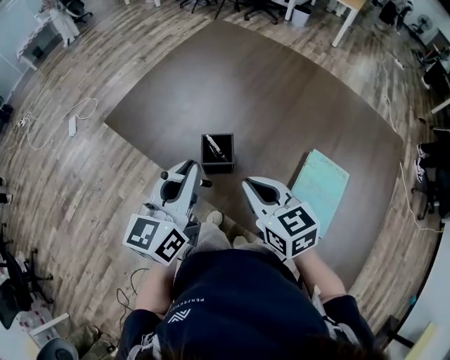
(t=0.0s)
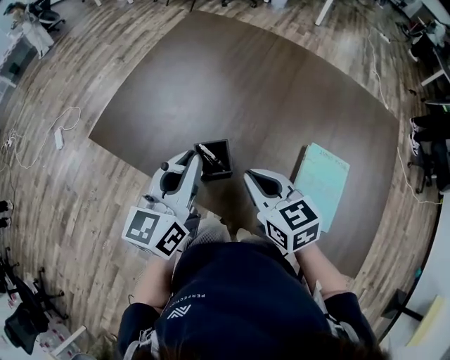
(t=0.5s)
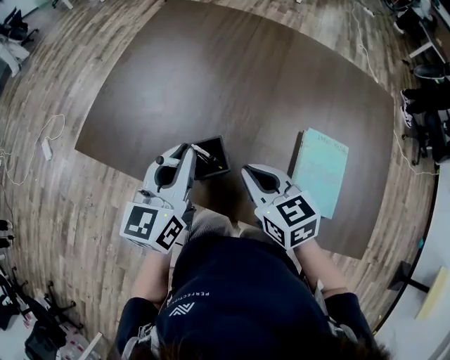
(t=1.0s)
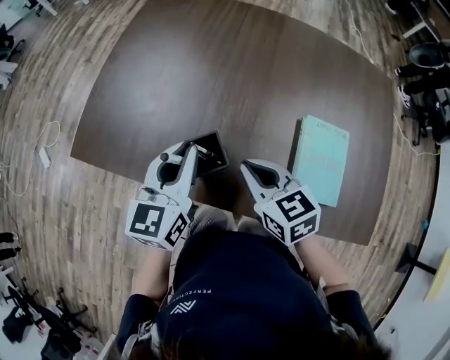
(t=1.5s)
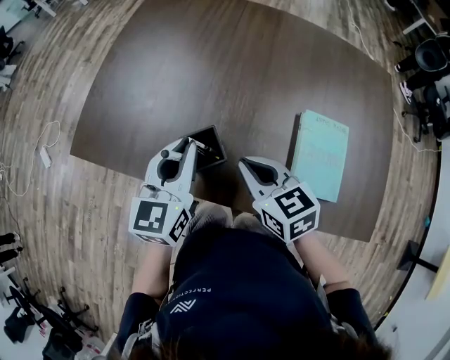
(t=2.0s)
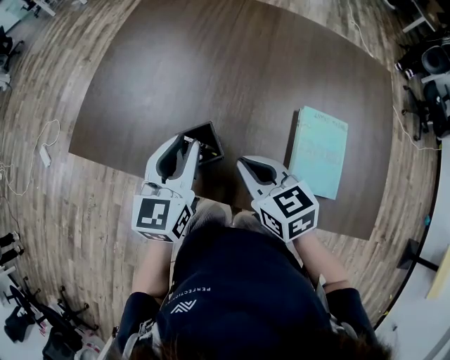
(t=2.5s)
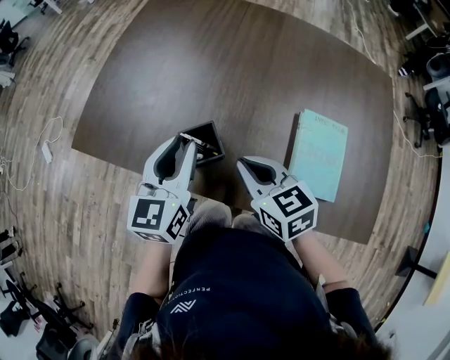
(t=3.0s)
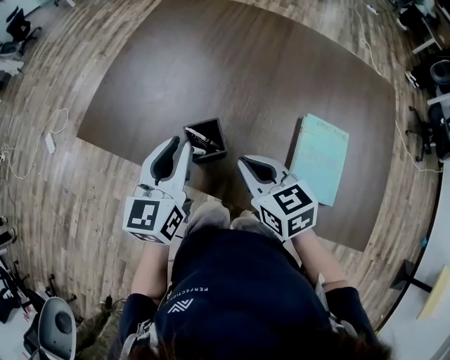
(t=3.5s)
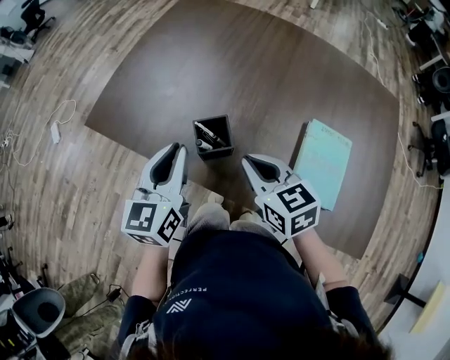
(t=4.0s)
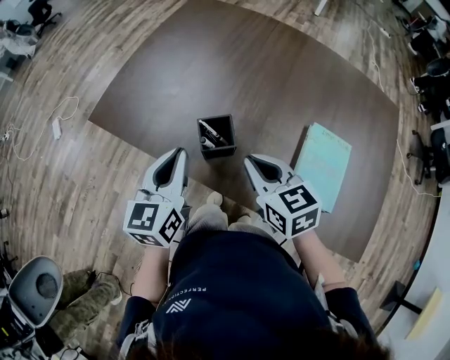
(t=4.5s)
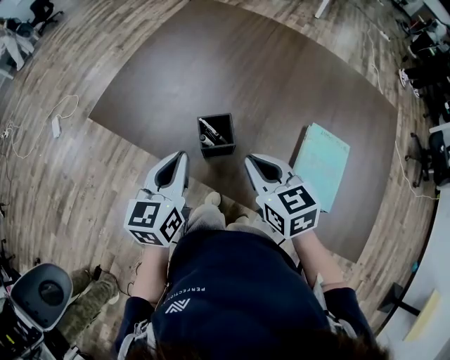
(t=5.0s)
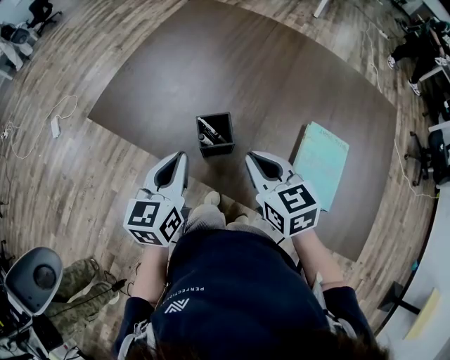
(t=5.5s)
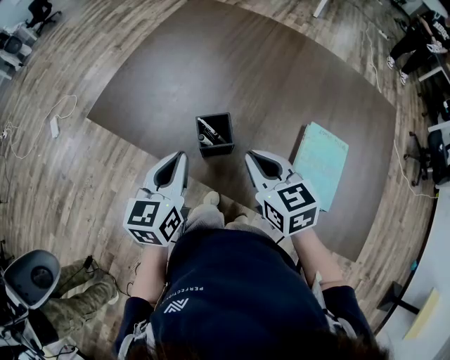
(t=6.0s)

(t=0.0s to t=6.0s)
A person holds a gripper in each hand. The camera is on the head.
t=0.0s - t=2.0s: The left gripper shifts about 10 cm forward and downward, and swivels approximately 20 degrees. Meanwhile the right gripper shifts by approximately 5 cm.
t=2.0s - t=4.0s: The left gripper is displaced to the left by approximately 5 cm.
t=4.0s - t=6.0s: The grippers make only small movements.

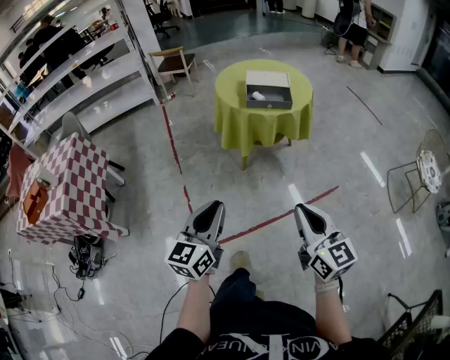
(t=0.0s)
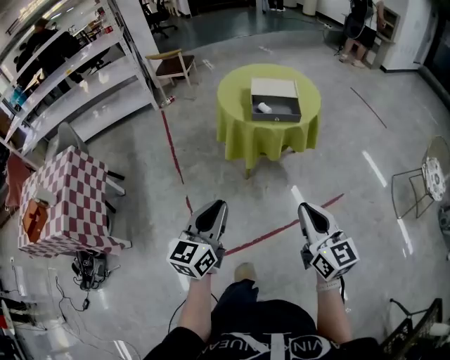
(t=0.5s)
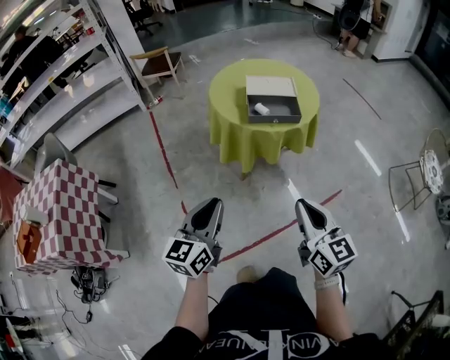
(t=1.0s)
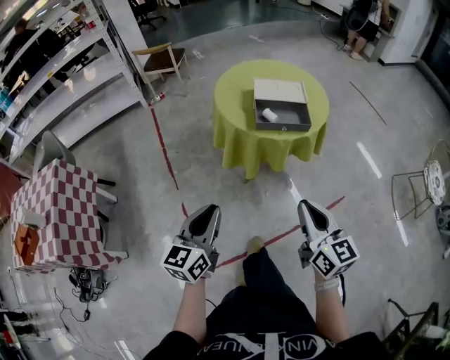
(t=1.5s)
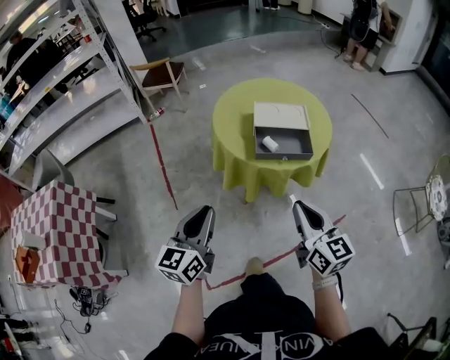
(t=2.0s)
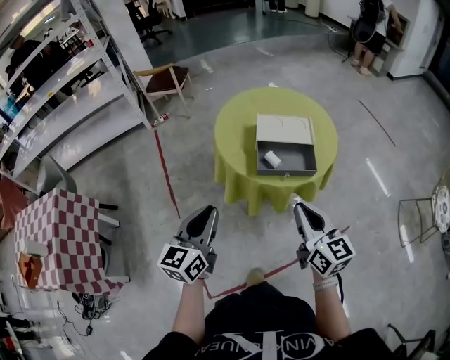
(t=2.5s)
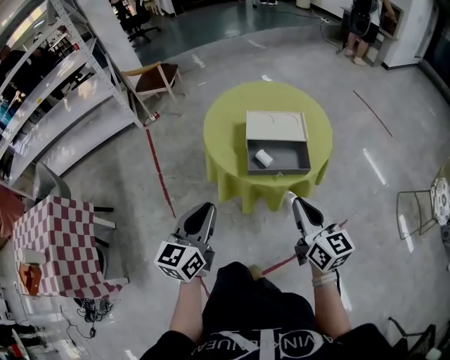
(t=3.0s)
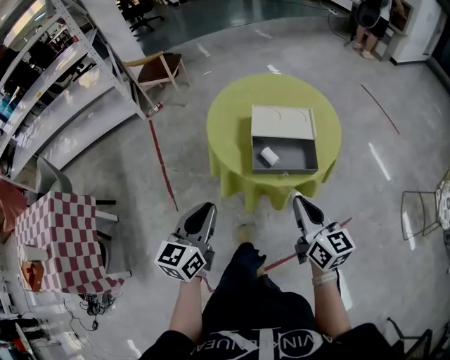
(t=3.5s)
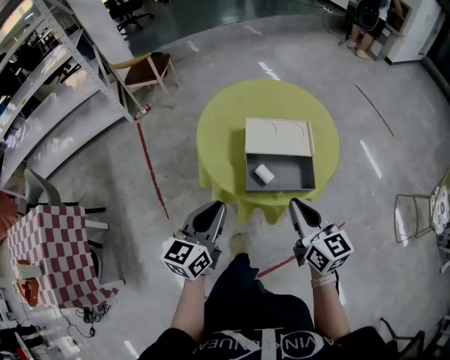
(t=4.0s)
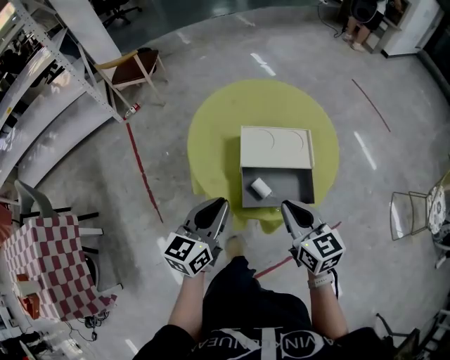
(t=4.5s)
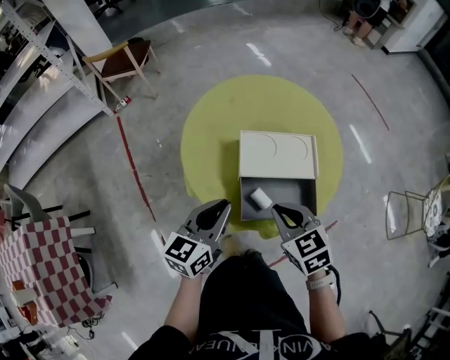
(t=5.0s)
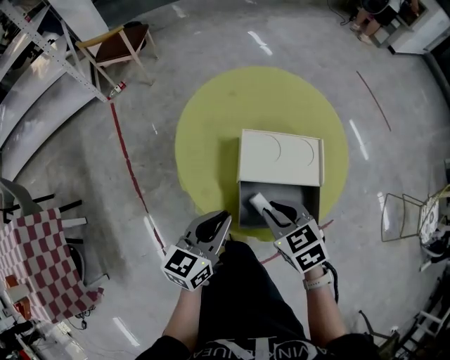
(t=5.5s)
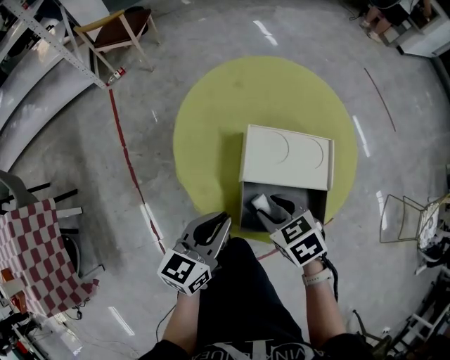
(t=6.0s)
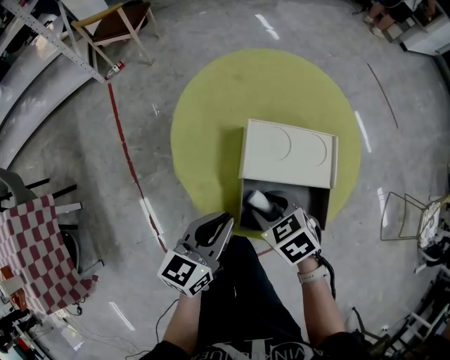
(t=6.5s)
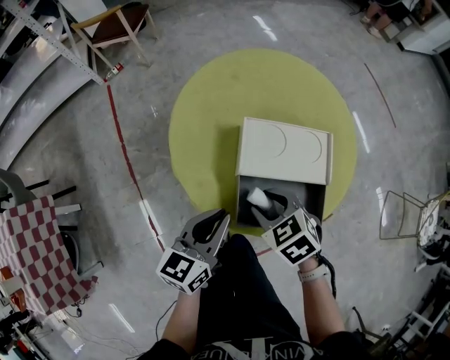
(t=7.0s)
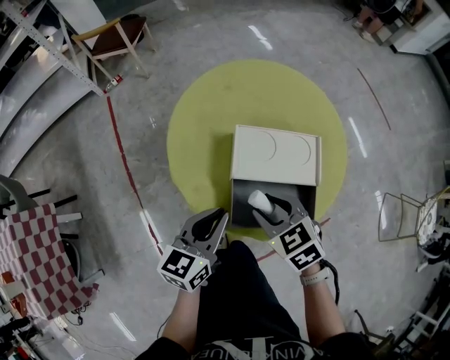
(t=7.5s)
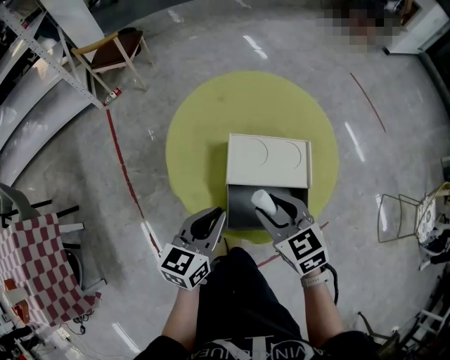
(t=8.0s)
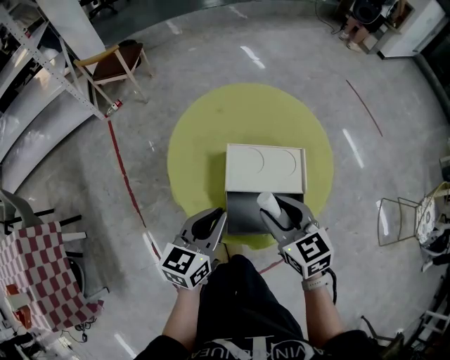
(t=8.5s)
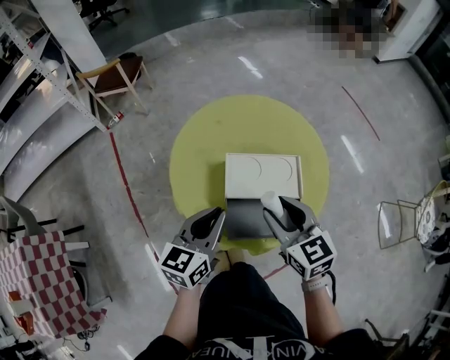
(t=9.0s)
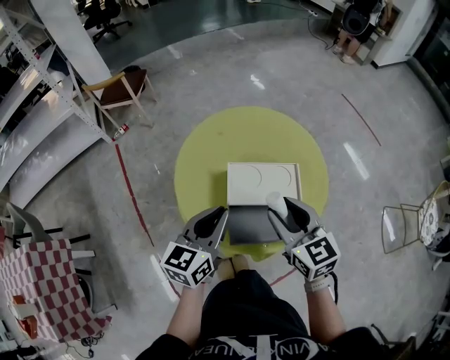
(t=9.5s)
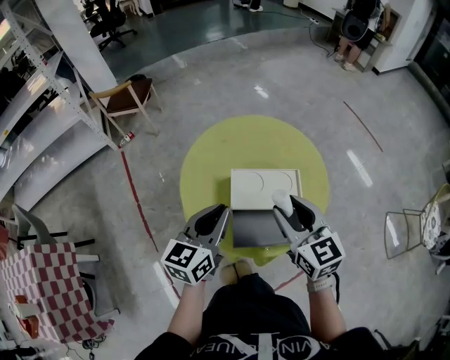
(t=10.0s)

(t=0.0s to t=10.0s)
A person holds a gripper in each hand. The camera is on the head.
t=0.0s - t=2.0s: Both grippers move forward, approximately 35 cm.
t=2.0s - t=4.0s: The left gripper shifts roughly 20 cm forward and to the right. The right gripper travels forward by about 20 cm.
t=4.0s - t=6.0s: The left gripper heads forward and downward, covering approximately 15 cm, while the right gripper shifts roughly 20 cm downward and forward, angles its fingers downward, by approximately 50 degrees, and opens its fingers.
t=6.0s - t=8.0s: The right gripper goes roughly 10 cm upward, and turns by approximately 20 degrees.
t=8.0s - t=10.0s: Both grippers move upward, about 10 cm. The right gripper swivels about 30 degrees.

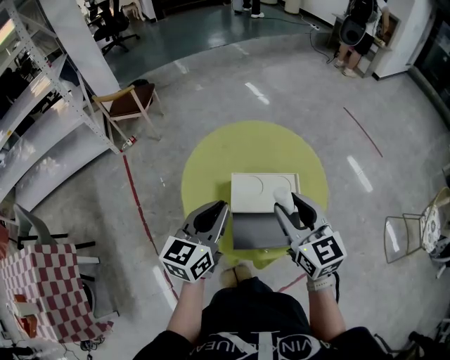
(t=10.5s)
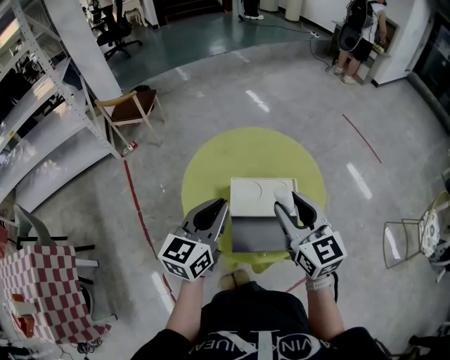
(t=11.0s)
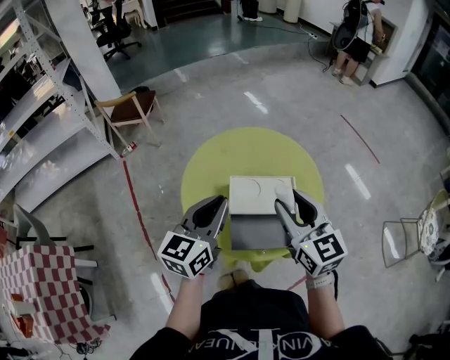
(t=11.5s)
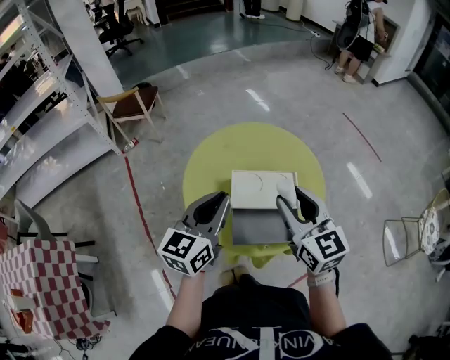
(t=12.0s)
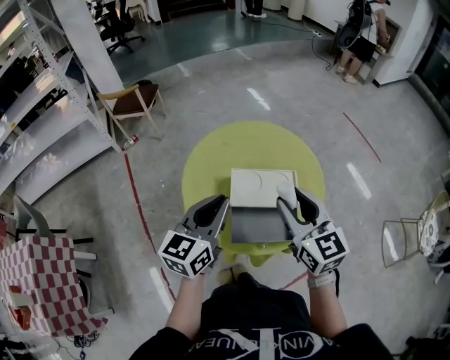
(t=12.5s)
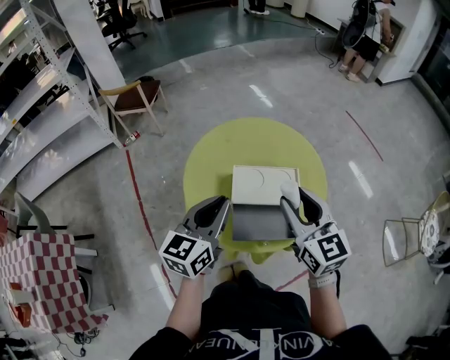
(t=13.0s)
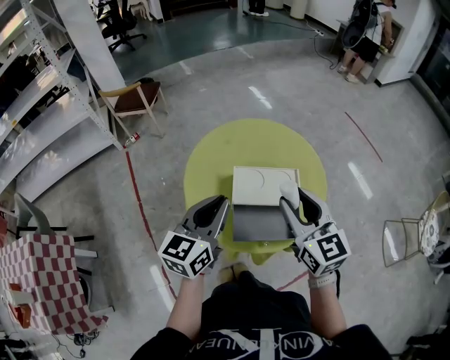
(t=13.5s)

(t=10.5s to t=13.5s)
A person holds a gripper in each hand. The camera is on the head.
t=10.5s - t=13.5s: The grippers make only small movements.

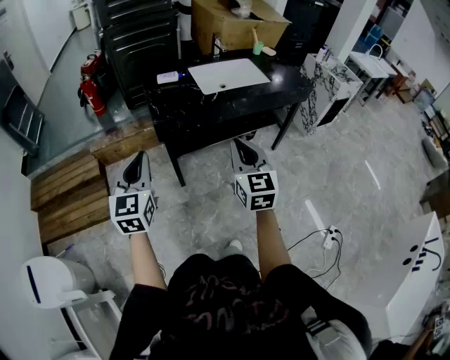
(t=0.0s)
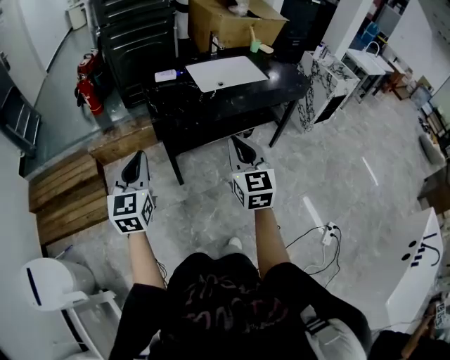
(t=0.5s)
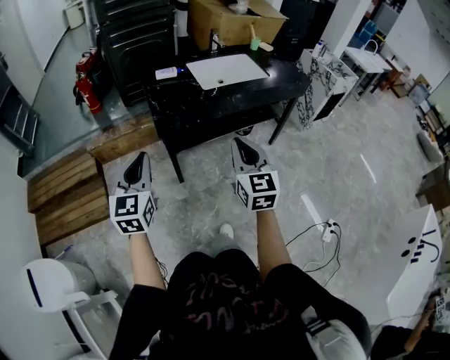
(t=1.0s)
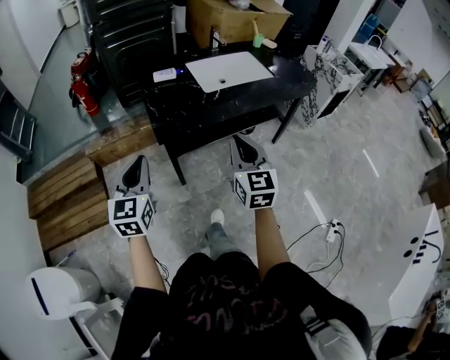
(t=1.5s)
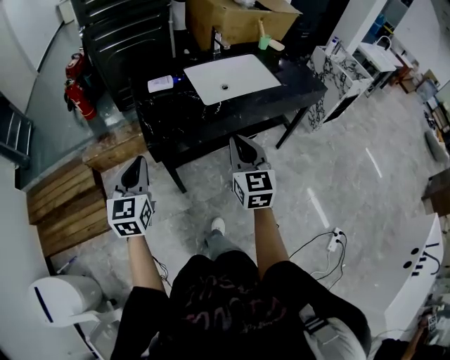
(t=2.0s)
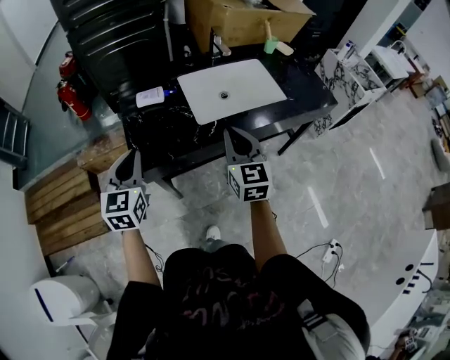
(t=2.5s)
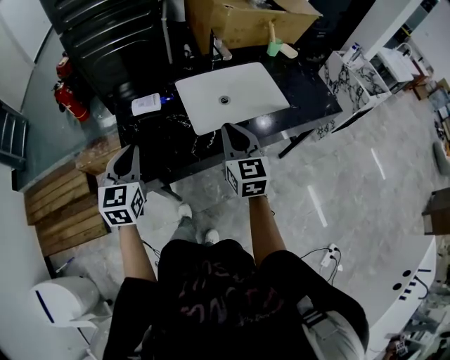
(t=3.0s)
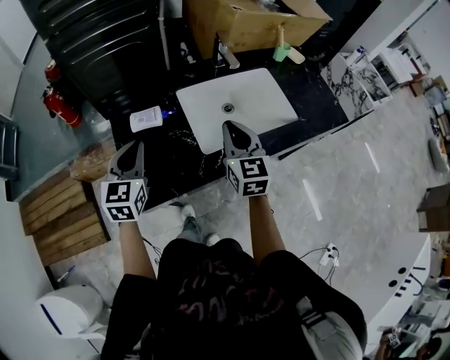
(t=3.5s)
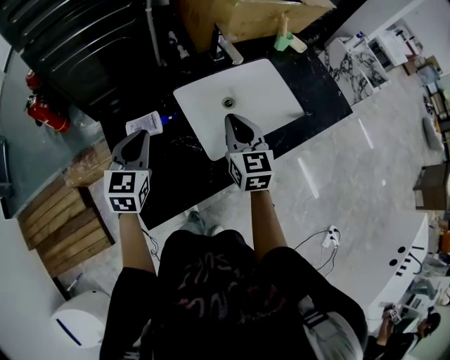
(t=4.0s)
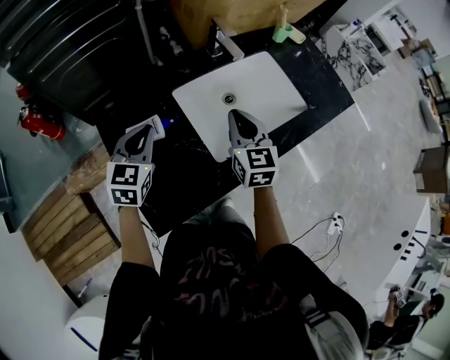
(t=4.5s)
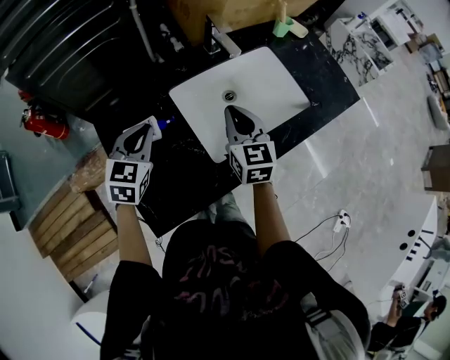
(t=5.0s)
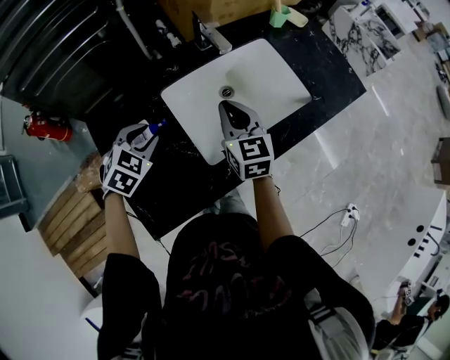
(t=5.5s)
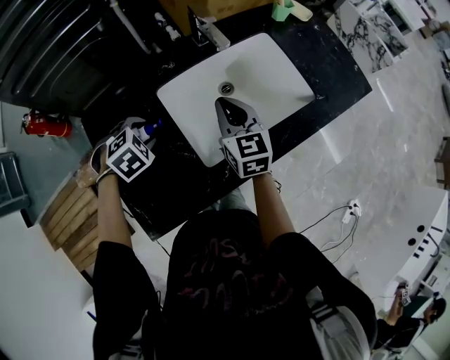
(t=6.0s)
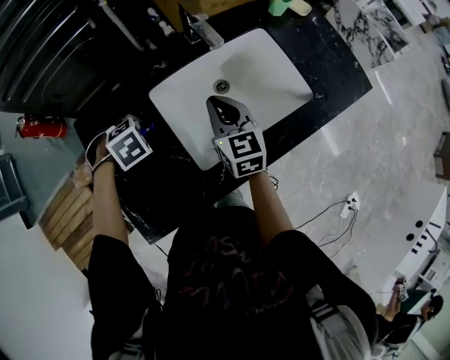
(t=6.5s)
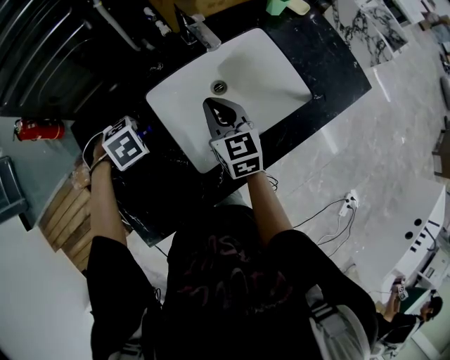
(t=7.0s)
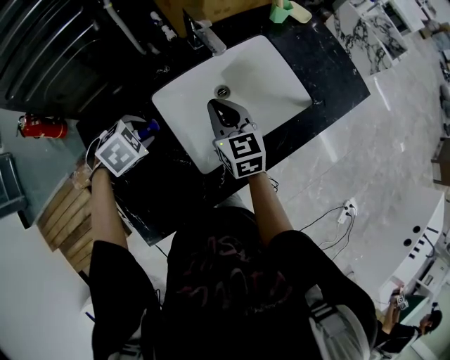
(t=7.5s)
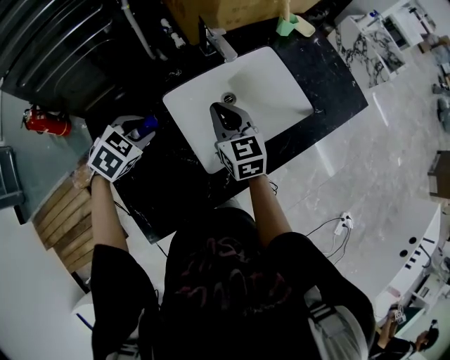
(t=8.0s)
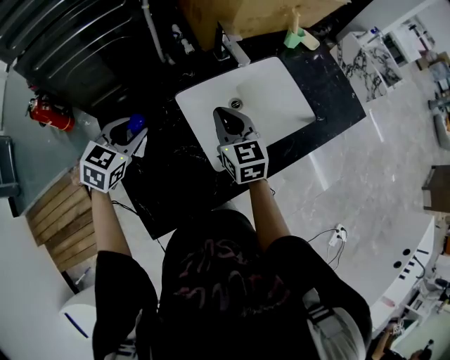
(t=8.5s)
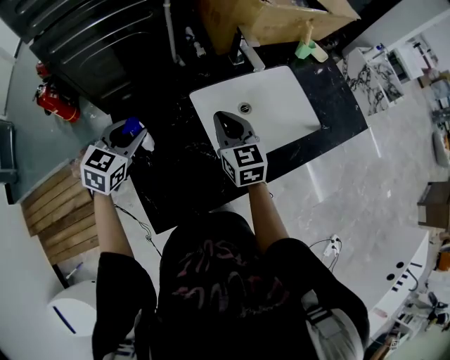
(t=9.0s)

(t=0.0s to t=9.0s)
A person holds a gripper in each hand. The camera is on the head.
t=0.0s - t=2.0s: Both grippers move forward, some 20 cm.
t=2.0s - t=4.5s: The pair of grippers is taken forward, about 40 cm. The left gripper turns by some 20 degrees.
t=4.5s - t=7.0s: The right gripper changes place by some 10 cm. The left gripper goes about 15 cm downward, tilts its fingers roughly 60 degrees downward, and opens up.
t=7.0s - t=9.0s: The right gripper changes place by some 10 cm, while the left gripper is displaced upward by some 15 cm, and angles its fingers upward, by some 50 degrees.
